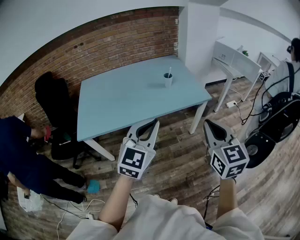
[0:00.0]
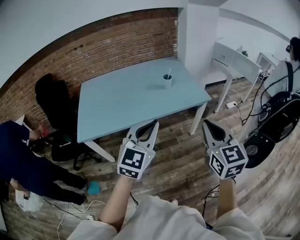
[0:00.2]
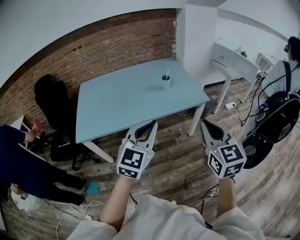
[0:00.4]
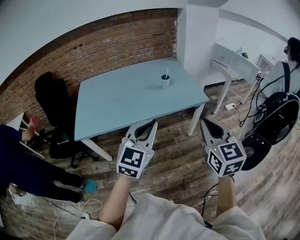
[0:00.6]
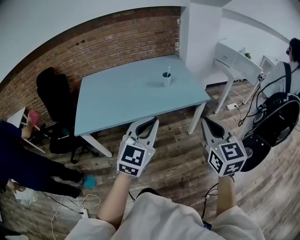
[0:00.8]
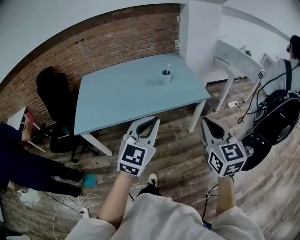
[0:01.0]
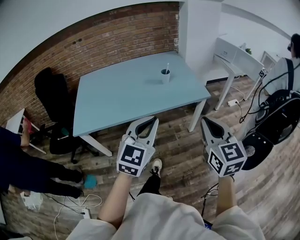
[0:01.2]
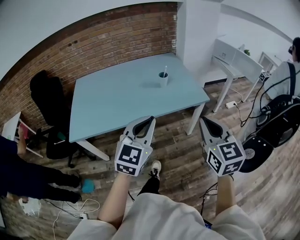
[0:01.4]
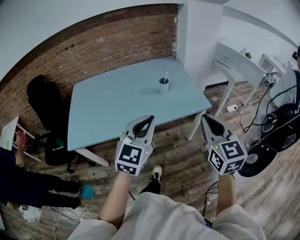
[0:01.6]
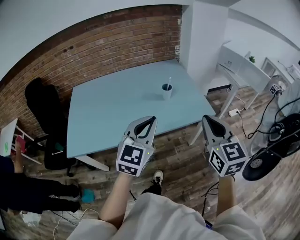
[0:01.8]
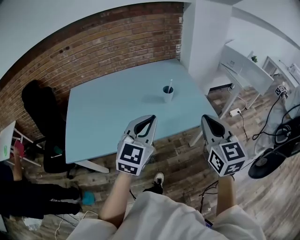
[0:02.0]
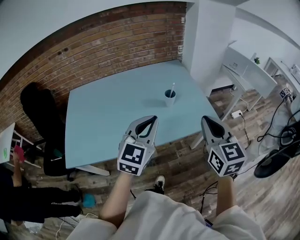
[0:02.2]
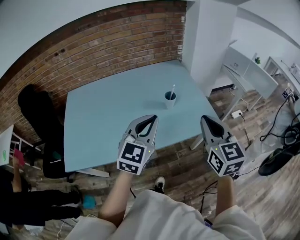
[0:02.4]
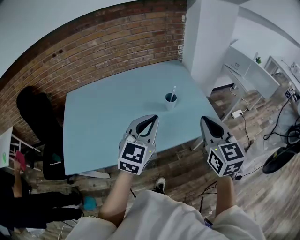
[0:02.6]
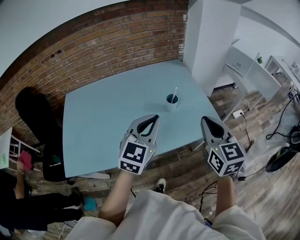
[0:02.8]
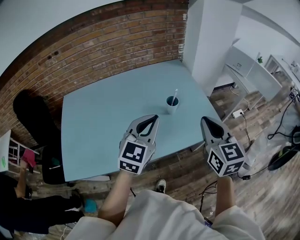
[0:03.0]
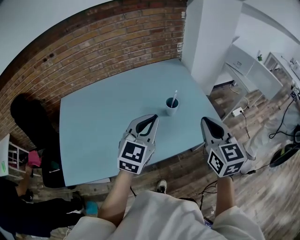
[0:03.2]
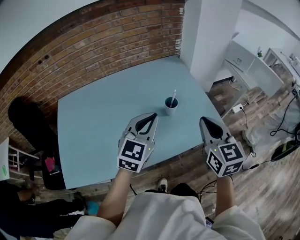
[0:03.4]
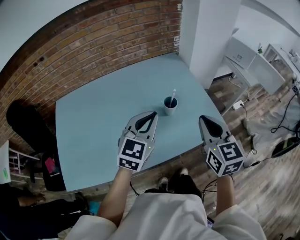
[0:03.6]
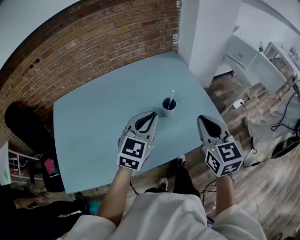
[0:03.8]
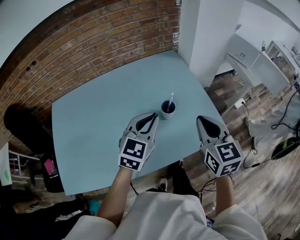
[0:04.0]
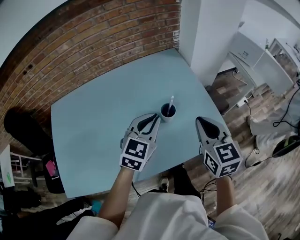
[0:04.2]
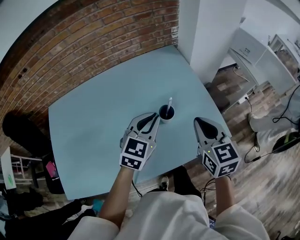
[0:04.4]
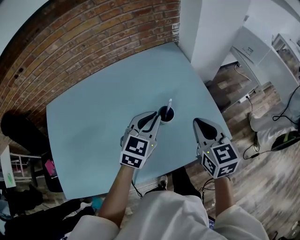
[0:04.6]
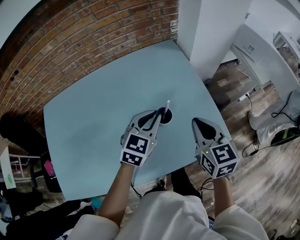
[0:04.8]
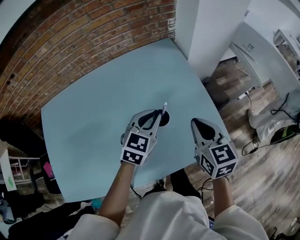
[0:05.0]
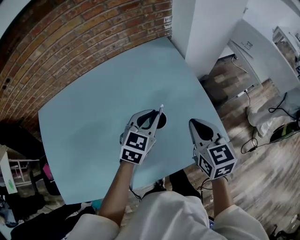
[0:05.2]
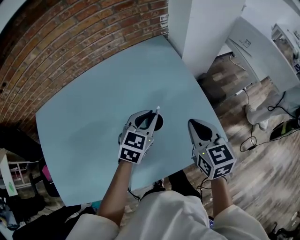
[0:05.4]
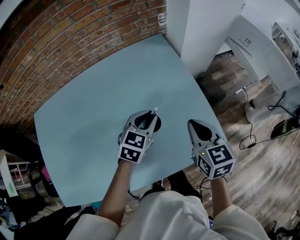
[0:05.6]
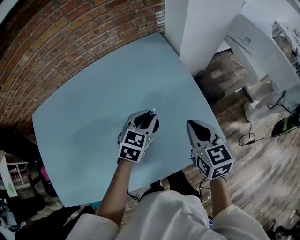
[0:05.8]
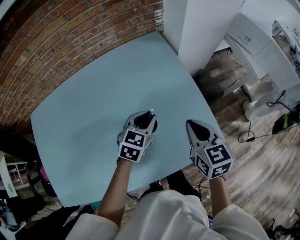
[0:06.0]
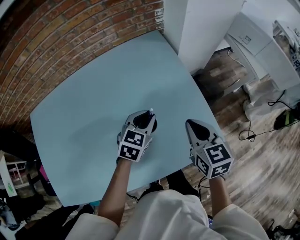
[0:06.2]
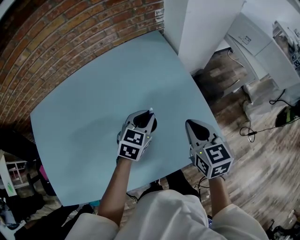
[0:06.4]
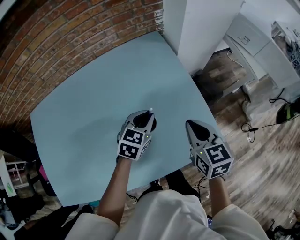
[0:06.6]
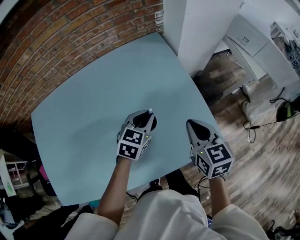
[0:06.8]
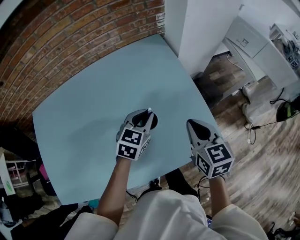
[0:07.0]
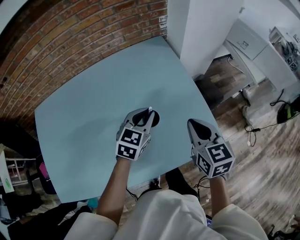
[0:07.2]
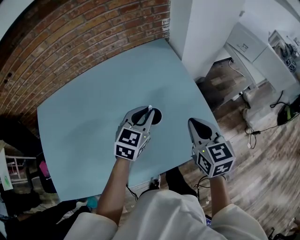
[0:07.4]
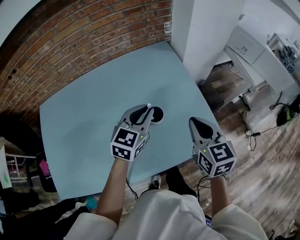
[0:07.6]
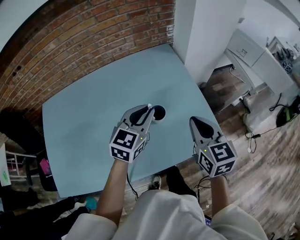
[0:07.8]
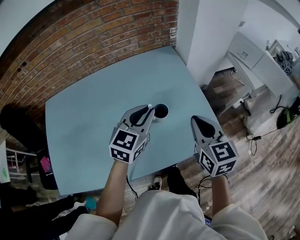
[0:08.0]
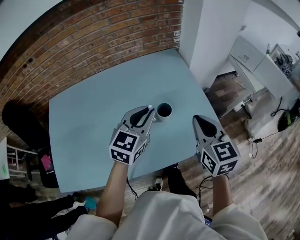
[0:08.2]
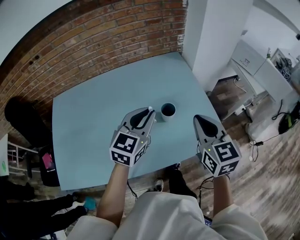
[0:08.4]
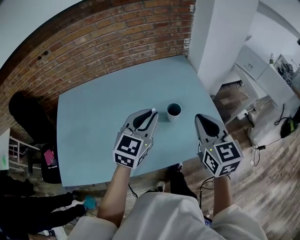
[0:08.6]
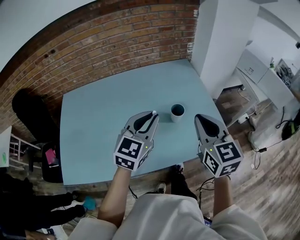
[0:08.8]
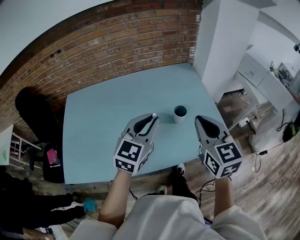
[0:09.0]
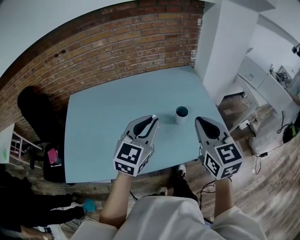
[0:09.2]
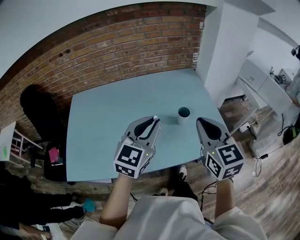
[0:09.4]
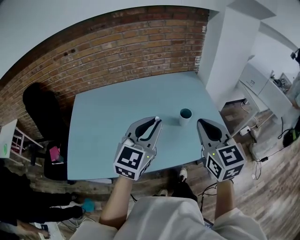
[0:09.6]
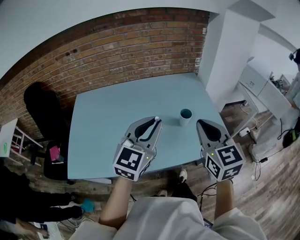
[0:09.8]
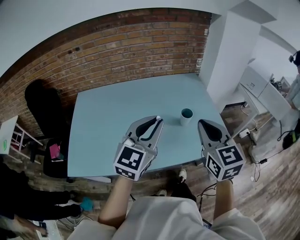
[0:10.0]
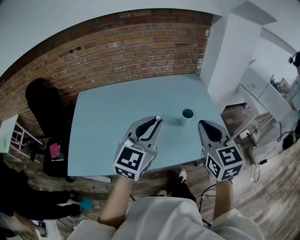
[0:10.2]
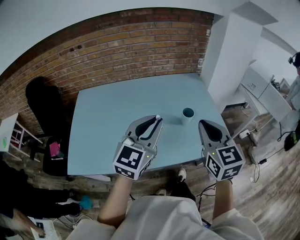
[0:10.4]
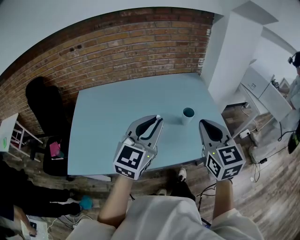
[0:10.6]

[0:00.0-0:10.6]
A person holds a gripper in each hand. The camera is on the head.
0:00.0 to 0:01.6: The grippers both shift forward by roughly 15 cm.
0:01.6 to 0:03.0: The grippers both shift forward by about 25 cm.
0:03.0 to 0:04.6: Both grippers move forward and downward, some 25 cm.
0:04.6 to 0:06.0: Both grippers move downward and forward, some 10 cm.
0:06.0 to 0:07.6: The right gripper is displaced upward and backward by about 10 cm. The left gripper heads upward, covering roughly 10 cm.
0:07.6 to 0:09.0: The right gripper goes approximately 20 cm upward, backward and to the left; the left gripper travels backward, upward and to the left by about 25 cm.
0:09.0 to 0:10.6: The left gripper travels backward and upward by roughly 10 cm. Meanwhile the right gripper heads backward, covering about 5 cm.

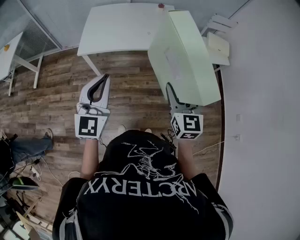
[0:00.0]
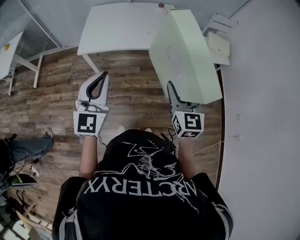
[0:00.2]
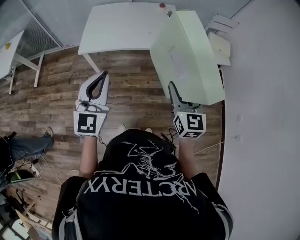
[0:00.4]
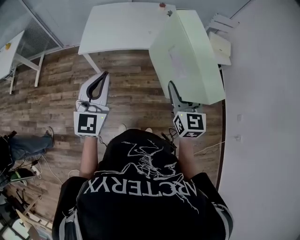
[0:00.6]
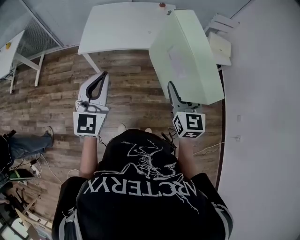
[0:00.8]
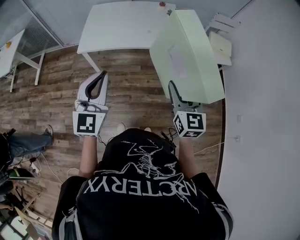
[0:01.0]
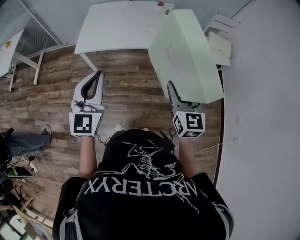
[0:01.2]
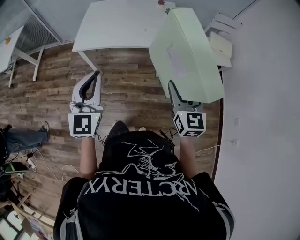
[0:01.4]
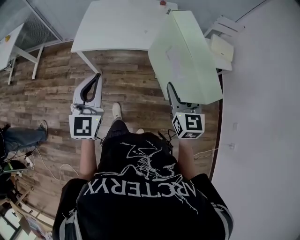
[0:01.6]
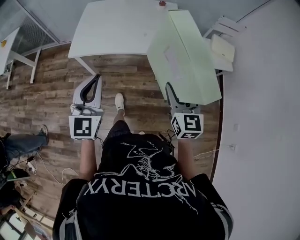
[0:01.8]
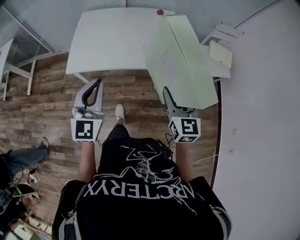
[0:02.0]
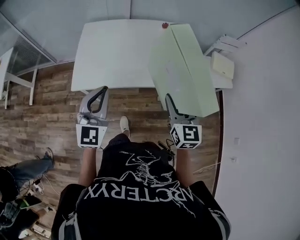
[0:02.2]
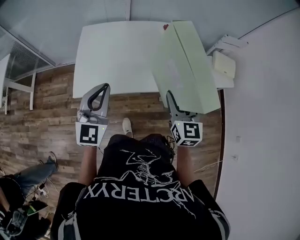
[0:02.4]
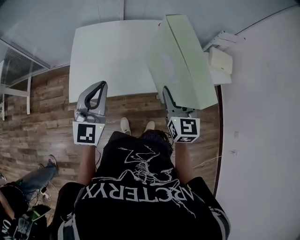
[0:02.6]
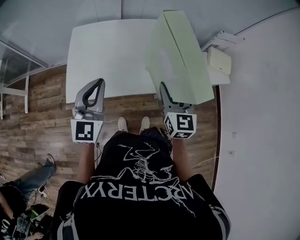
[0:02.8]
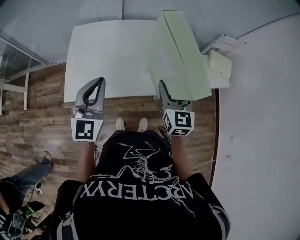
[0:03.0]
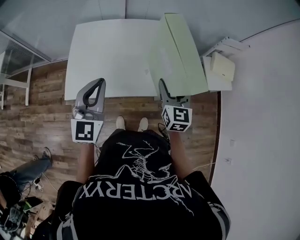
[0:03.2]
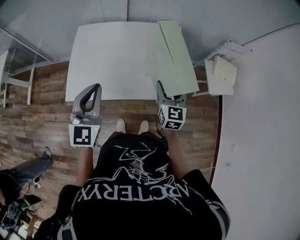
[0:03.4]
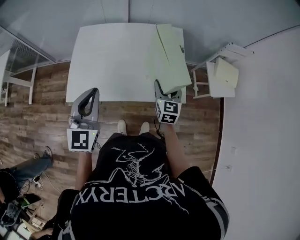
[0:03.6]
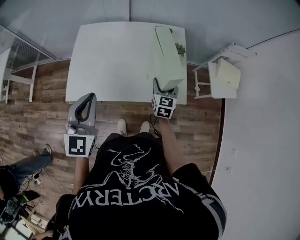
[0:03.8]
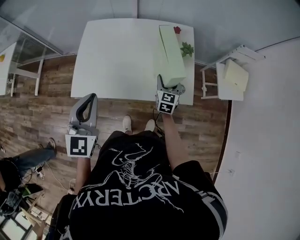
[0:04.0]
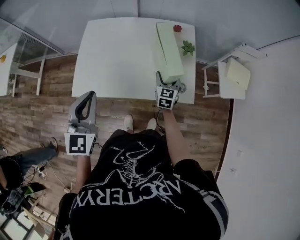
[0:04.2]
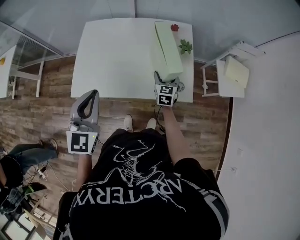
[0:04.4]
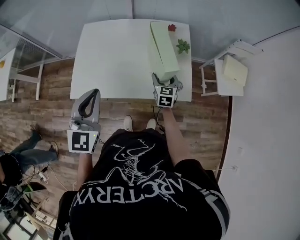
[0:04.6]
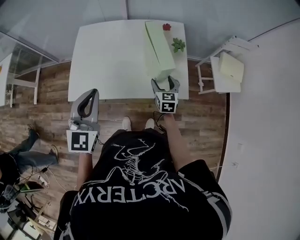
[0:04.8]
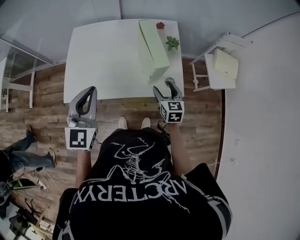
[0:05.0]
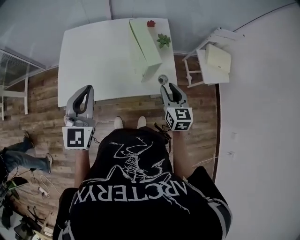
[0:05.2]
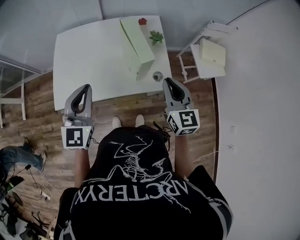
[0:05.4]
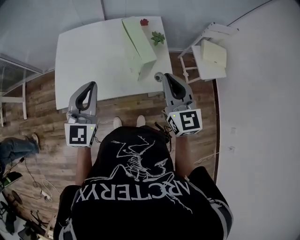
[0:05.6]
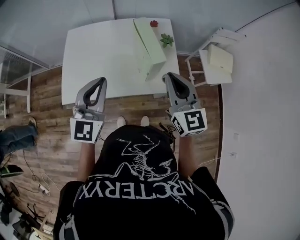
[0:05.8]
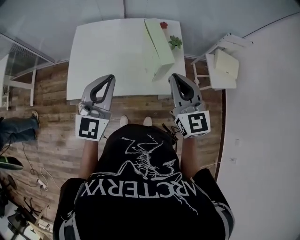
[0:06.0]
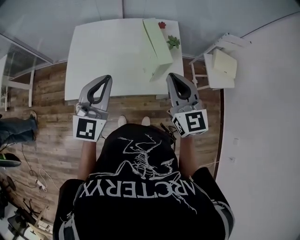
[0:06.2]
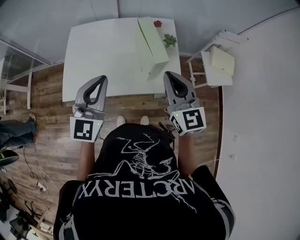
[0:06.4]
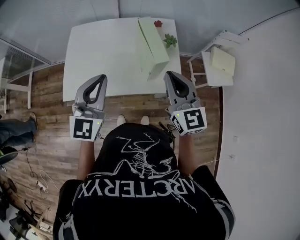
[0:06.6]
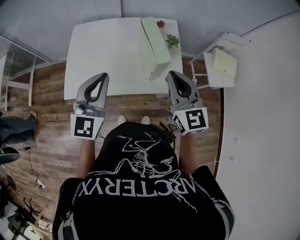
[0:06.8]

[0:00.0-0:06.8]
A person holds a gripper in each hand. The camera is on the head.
0:00.0 to 0:01.4: The right gripper moves to the right, approximately 5 cm.
0:01.4 to 0:02.8: The two grippers go approximately 35 cm forward.
0:02.8 to 0:04.0: The right gripper is displaced downward and forward by approximately 25 cm.
0:04.0 to 0:05.4: The right gripper travels upward and backward by about 25 cm, and closes, while the left gripper is displaced to the right by some 5 cm.
0:05.4 to 0:06.8: The right gripper shifts some 10 cm upward and to the left.

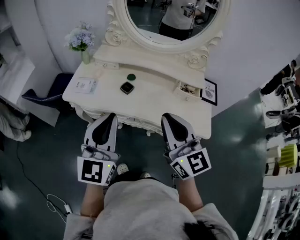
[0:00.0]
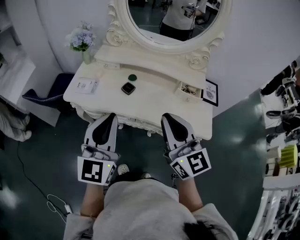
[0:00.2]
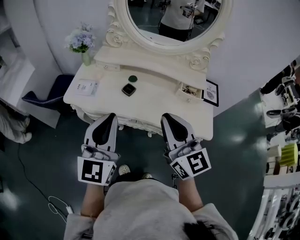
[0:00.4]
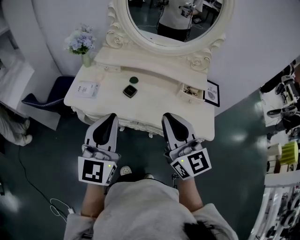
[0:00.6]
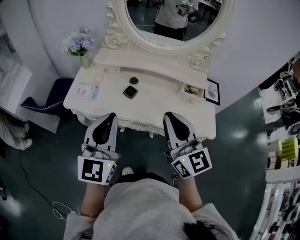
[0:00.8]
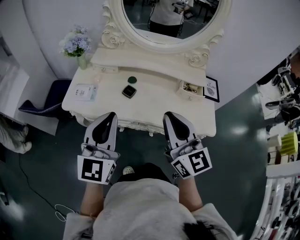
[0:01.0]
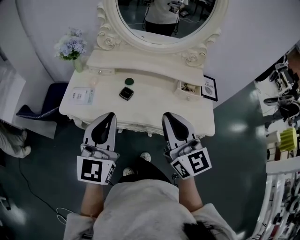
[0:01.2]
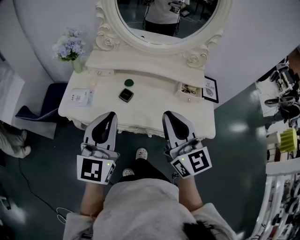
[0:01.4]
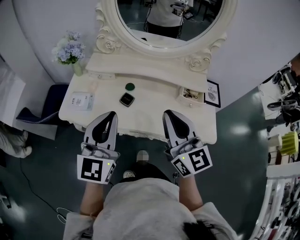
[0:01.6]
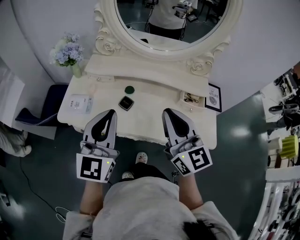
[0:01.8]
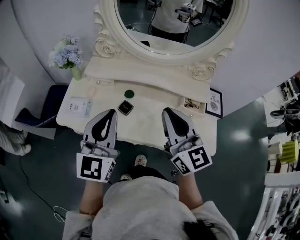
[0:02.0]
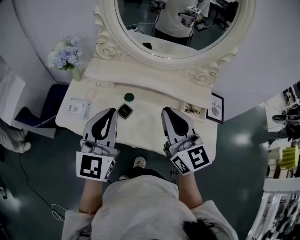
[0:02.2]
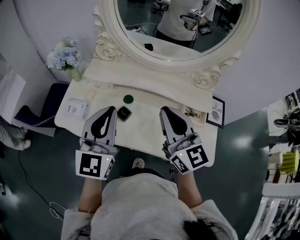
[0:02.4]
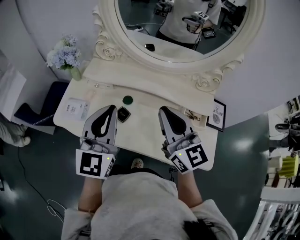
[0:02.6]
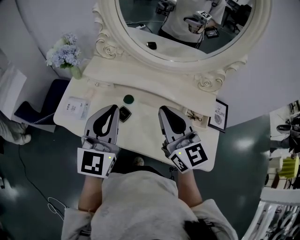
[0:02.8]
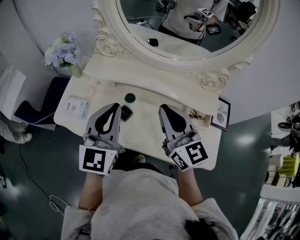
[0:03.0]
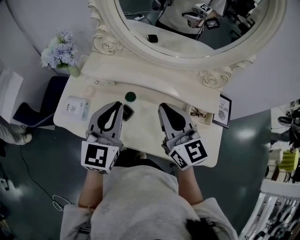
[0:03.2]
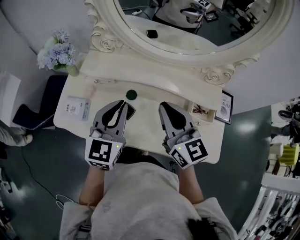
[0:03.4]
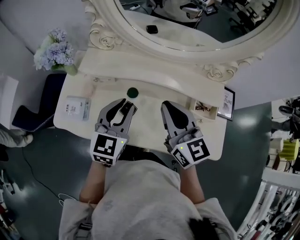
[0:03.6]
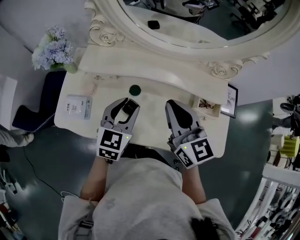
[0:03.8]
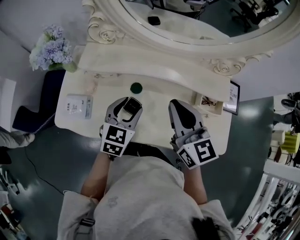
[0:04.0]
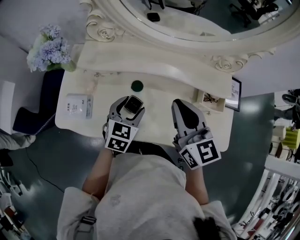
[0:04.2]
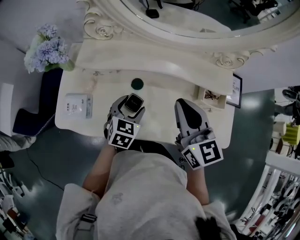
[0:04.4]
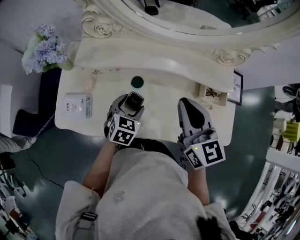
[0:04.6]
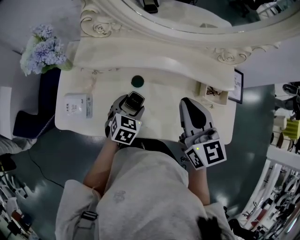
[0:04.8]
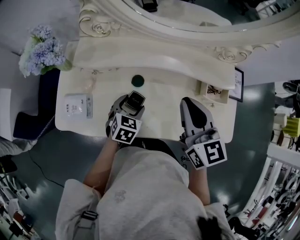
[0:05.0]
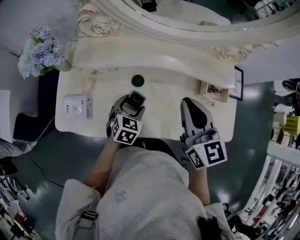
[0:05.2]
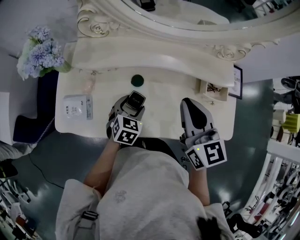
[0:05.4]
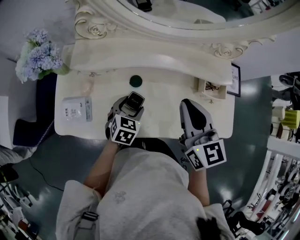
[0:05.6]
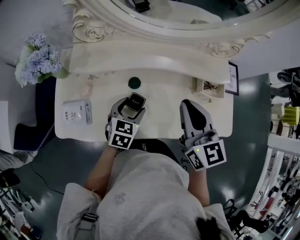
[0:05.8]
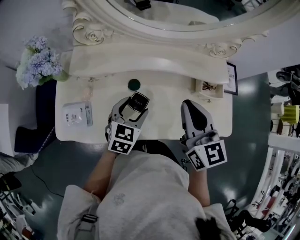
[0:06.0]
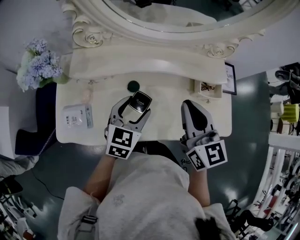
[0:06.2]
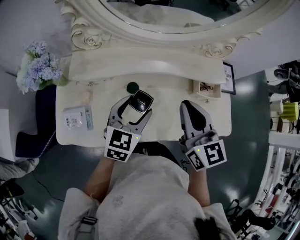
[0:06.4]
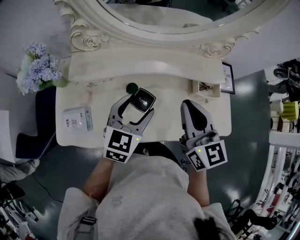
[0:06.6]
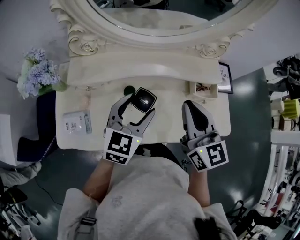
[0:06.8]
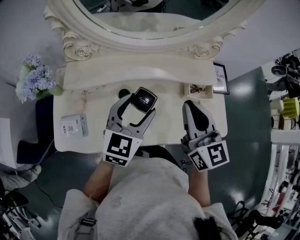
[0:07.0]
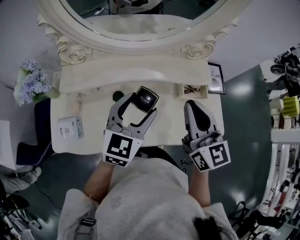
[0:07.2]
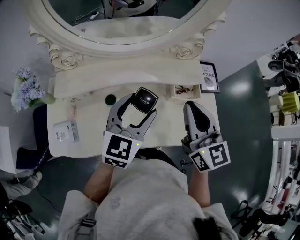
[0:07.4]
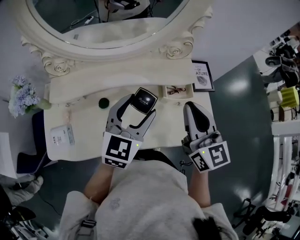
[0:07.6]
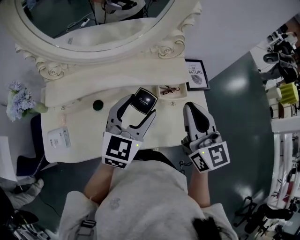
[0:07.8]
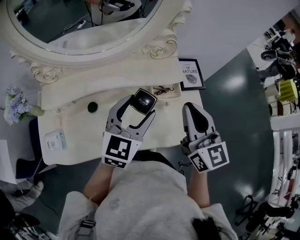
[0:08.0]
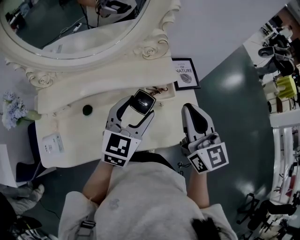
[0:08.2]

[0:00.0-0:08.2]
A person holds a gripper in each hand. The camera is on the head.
0:00.0 to 0:01.6: The two grippers go about 10 cm forward.
0:01.6 to 0:03.2: The two grippers go approximately 15 cm forward.
0:03.2 to 0:05.0: The right gripper moves roughly 5 cm. Meanwhile the left gripper moves downward, some 25 cm, angles its fingers downward, by approximately 40 degrees, and opens up.
0:05.0 to 0:06.6: The left gripper moves upward, about 15 cm, and rotates some 30 degrees.
0:06.6 to 0:08.2: The two grippers go about 25 cm to the right.
